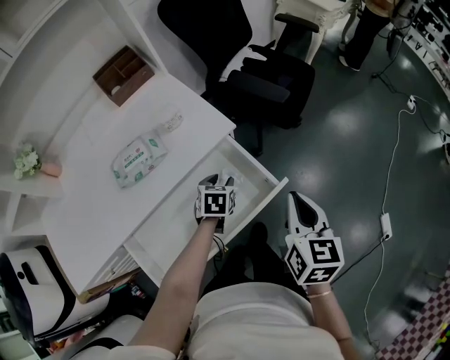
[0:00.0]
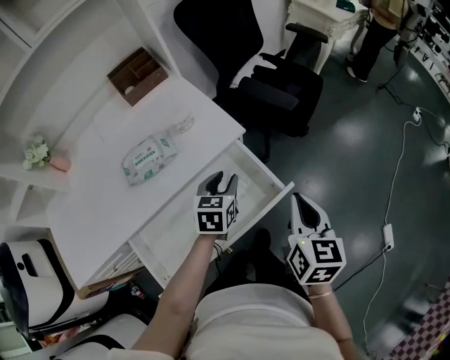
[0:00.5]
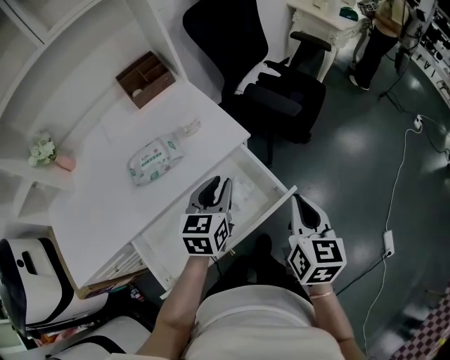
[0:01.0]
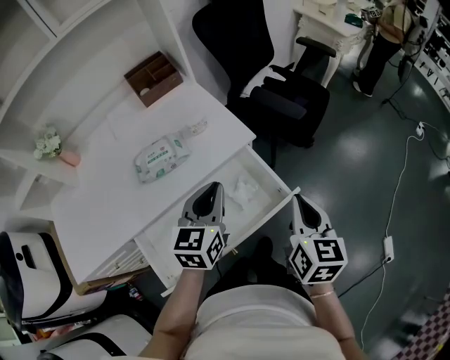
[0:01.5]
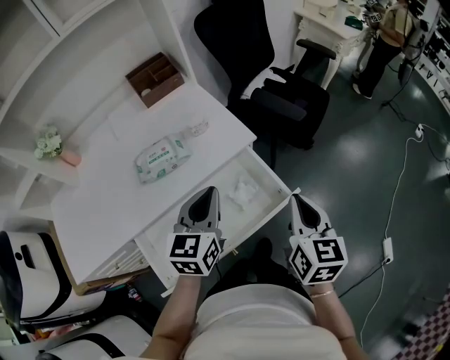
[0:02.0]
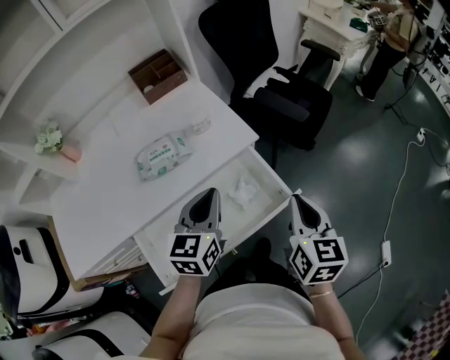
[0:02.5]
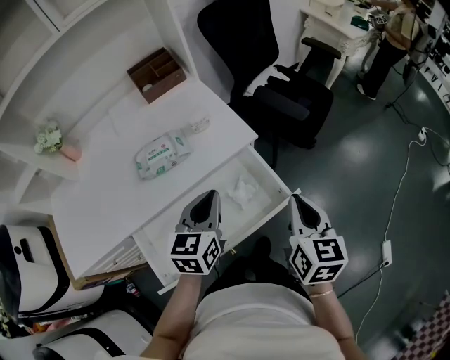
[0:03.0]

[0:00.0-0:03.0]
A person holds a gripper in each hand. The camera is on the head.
0:00.0 to 0:01.5: The left gripper travels upward by about 25 cm, angles its fingers upward, by about 40 degrees, and closes.
0:01.5 to 0:03.0: The grippers stay close to where they were, moving slightly.

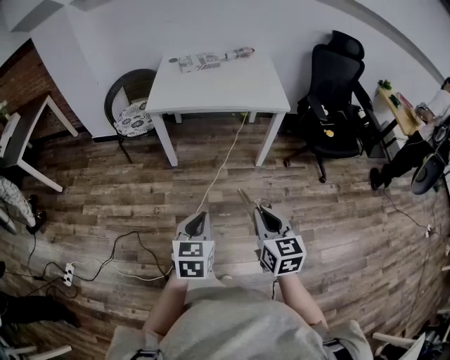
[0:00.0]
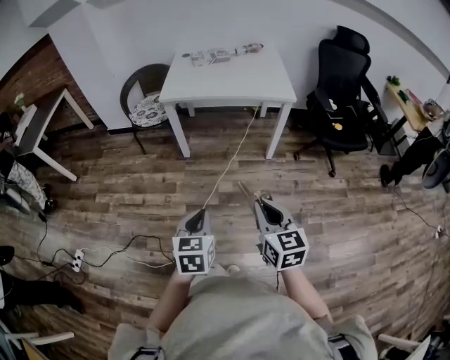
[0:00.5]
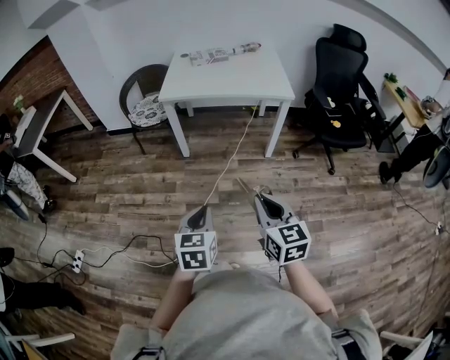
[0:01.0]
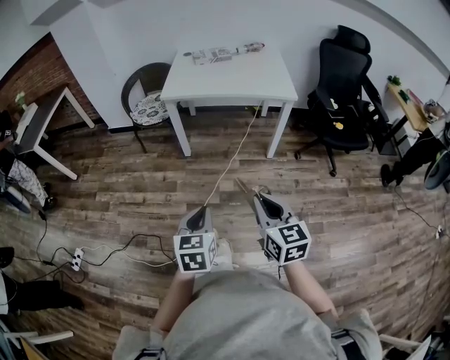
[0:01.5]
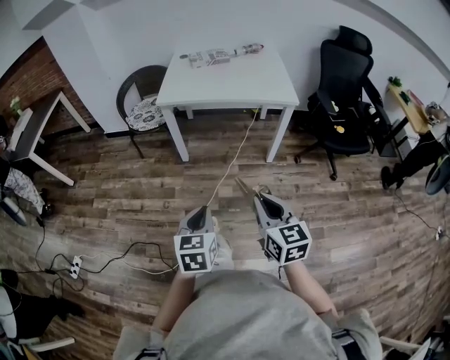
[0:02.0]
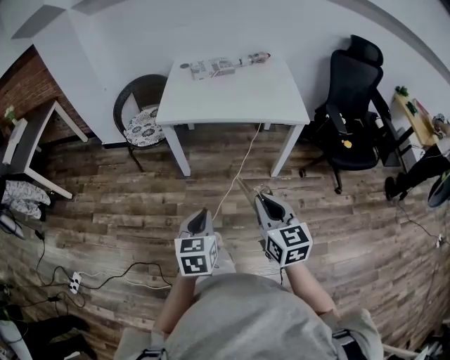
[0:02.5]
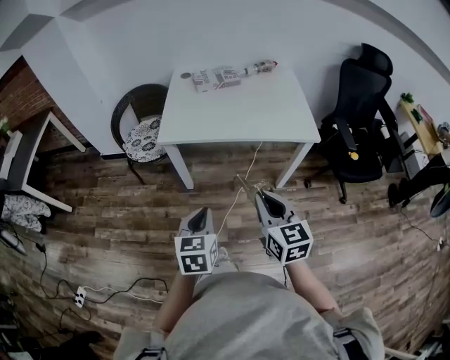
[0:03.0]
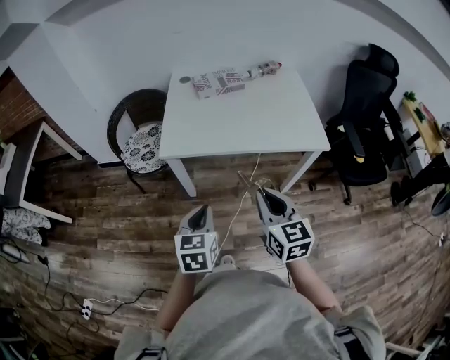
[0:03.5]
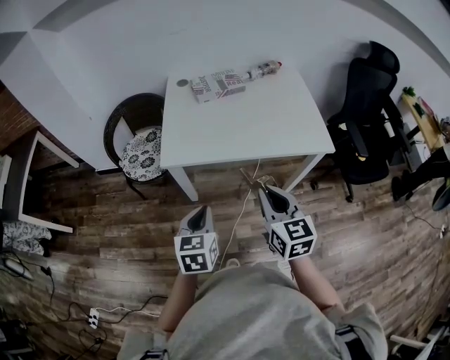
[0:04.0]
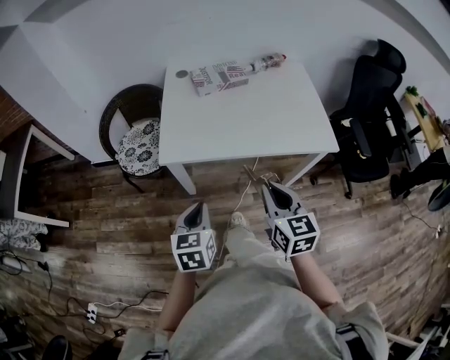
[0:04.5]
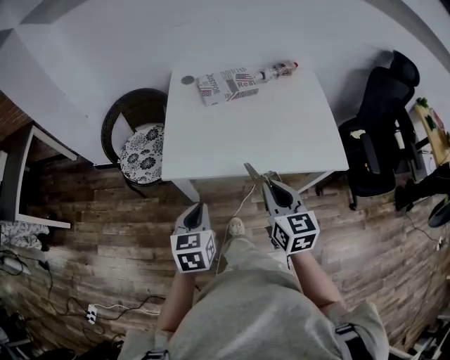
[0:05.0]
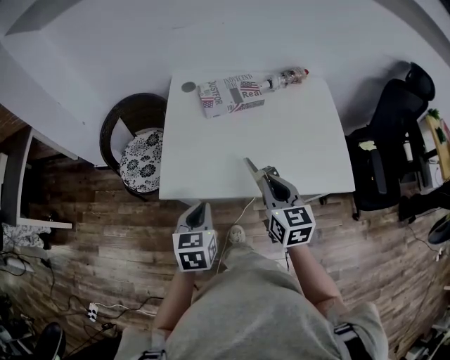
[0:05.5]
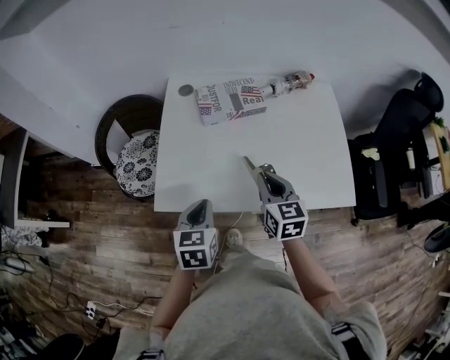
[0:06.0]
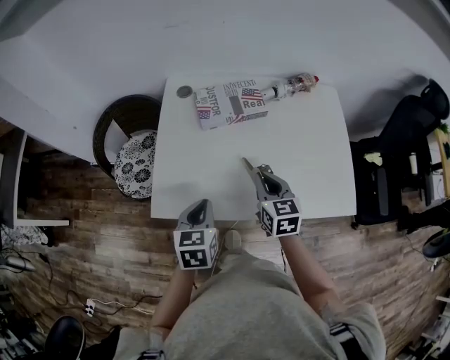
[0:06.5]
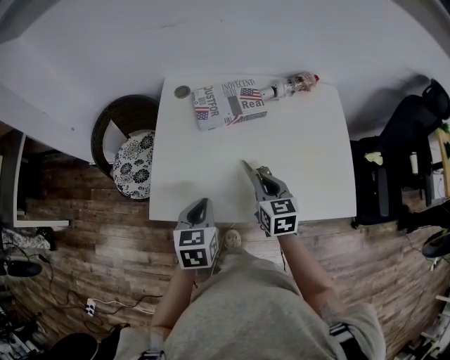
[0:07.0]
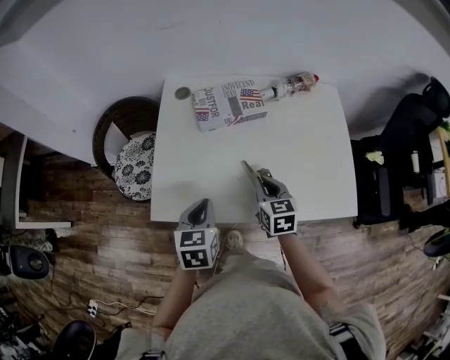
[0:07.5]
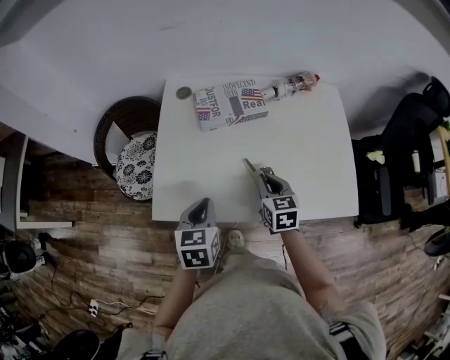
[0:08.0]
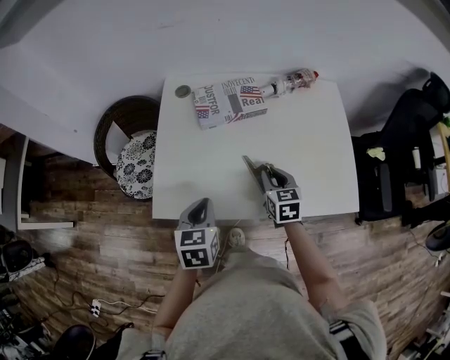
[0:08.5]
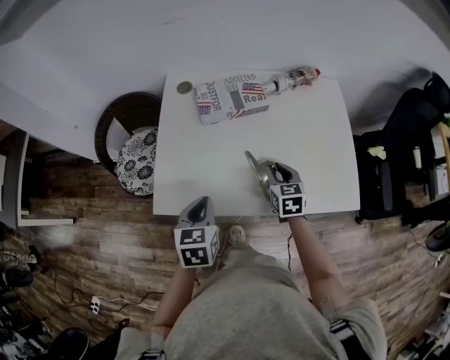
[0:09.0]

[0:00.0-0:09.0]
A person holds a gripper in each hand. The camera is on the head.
0:00.0 to 0:02.0: The right gripper moves roughly 10 cm backward and comes back. The left gripper travels backward and back again, about 10 cm each way.
0:02.0 to 0:04.5: The two grippers travel together, forward, approximately 50 cm.
0:04.5 to 0:07.0: The two grippers go about 30 cm forward.
0:07.0 to 0:09.0: The right gripper shifts by about 5 cm.

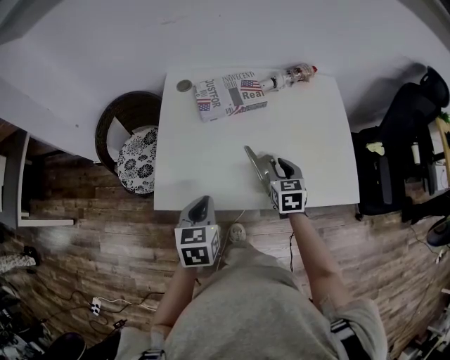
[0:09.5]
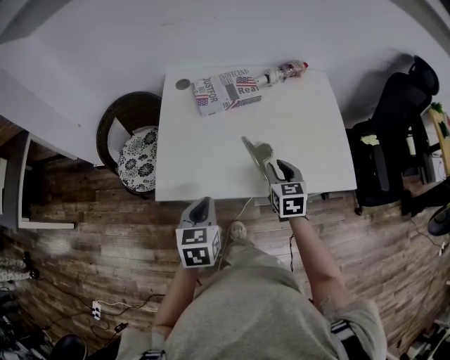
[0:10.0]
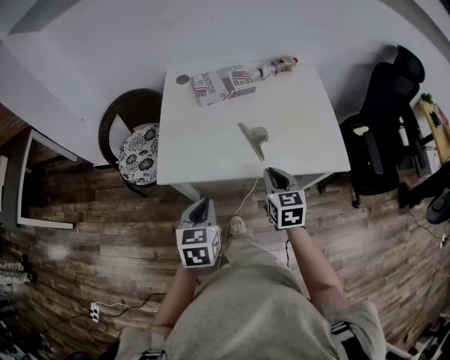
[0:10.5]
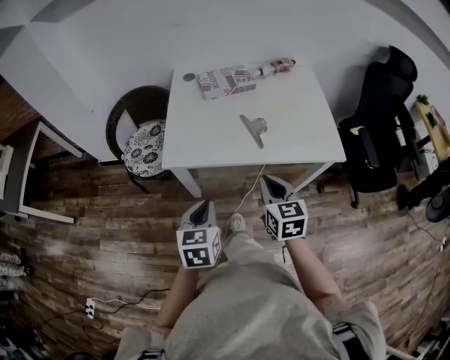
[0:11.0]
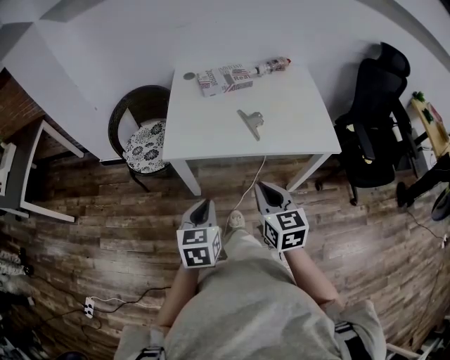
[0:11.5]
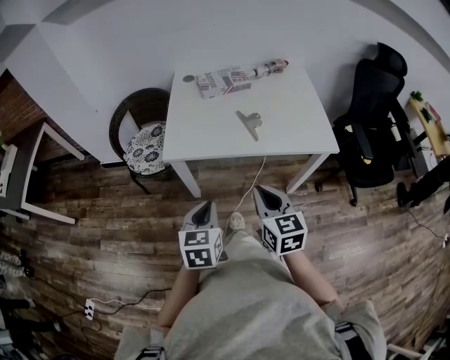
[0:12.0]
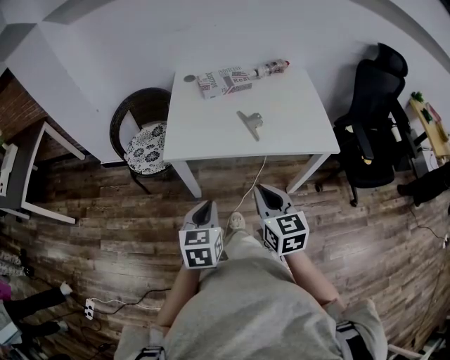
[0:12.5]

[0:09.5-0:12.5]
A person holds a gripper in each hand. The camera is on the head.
0:09.5 to 0:11.0: Both grippers travel together backward, roughly 25 cm. The right gripper closes its fingers.
0:11.0 to 0:12.5: The left gripper shifts some 5 cm backward. Meanwhile the right gripper moves backward, about 10 cm.

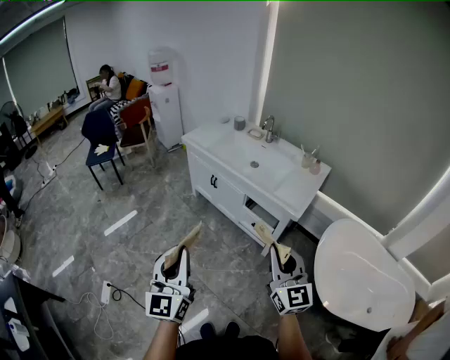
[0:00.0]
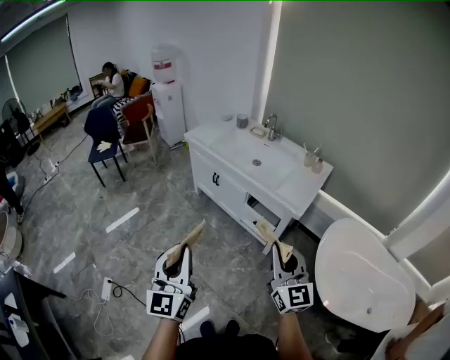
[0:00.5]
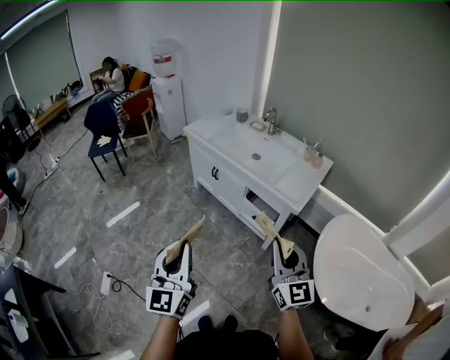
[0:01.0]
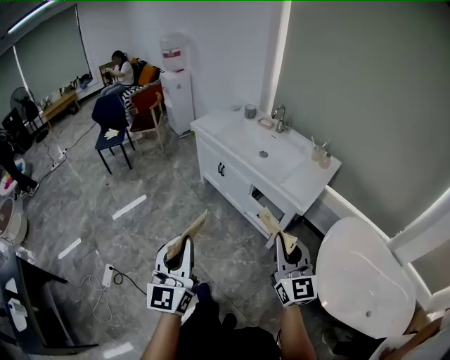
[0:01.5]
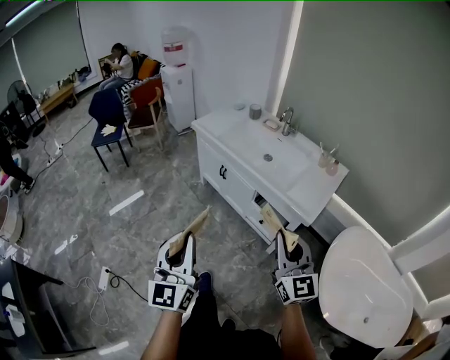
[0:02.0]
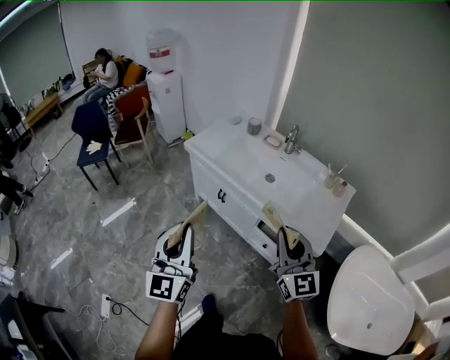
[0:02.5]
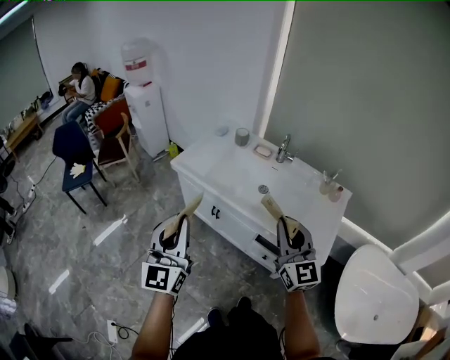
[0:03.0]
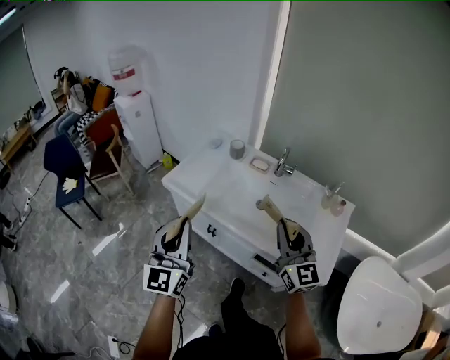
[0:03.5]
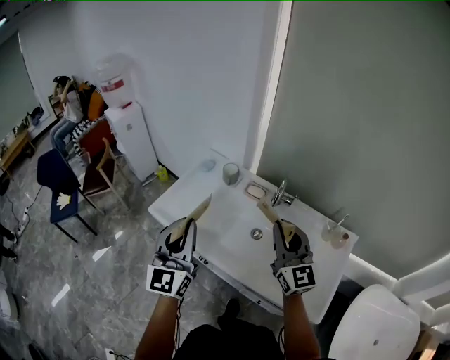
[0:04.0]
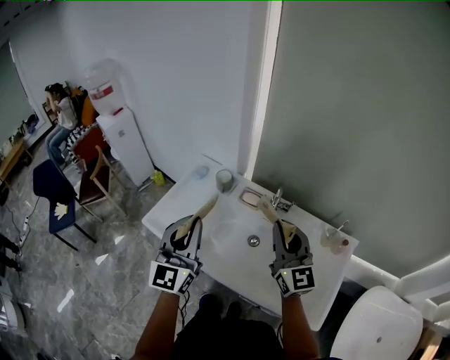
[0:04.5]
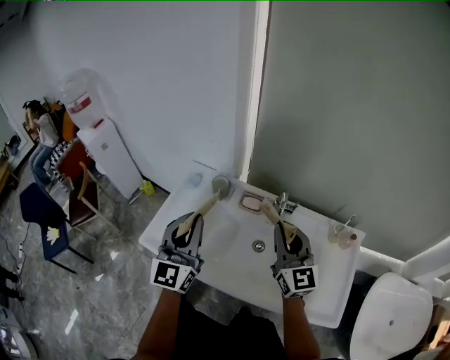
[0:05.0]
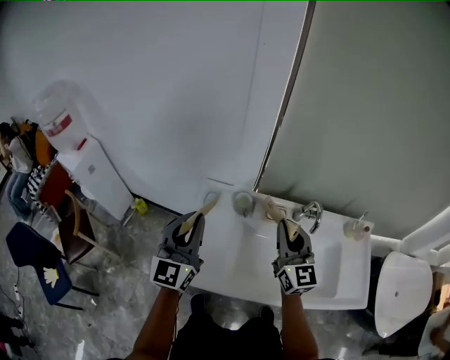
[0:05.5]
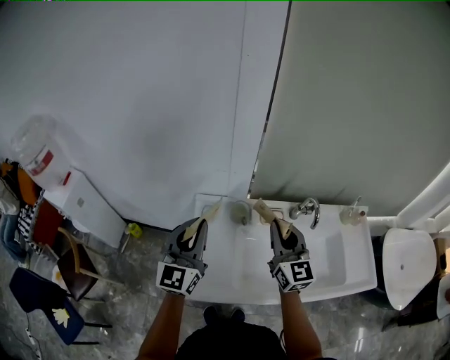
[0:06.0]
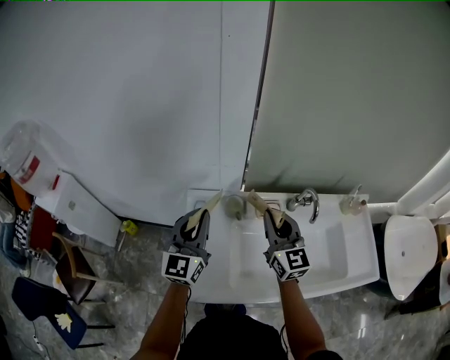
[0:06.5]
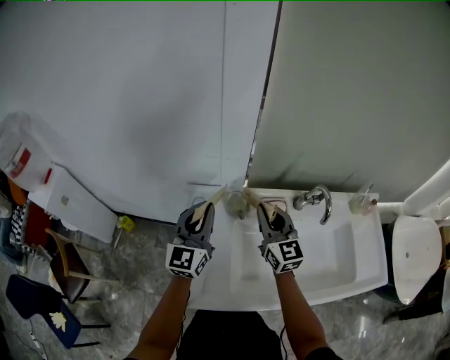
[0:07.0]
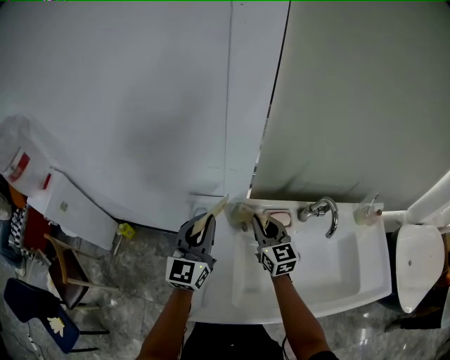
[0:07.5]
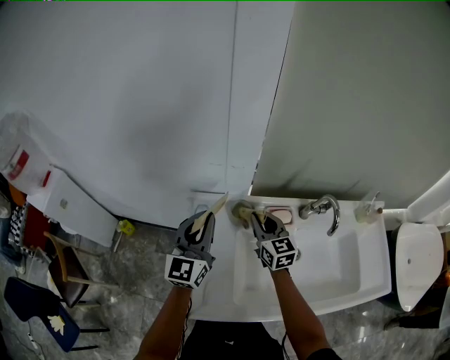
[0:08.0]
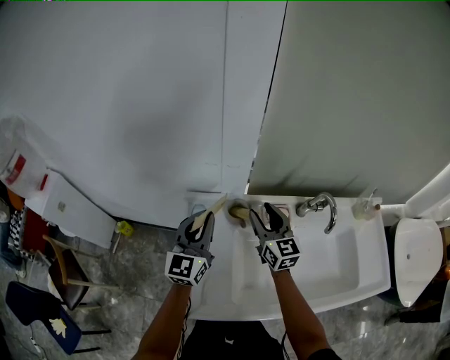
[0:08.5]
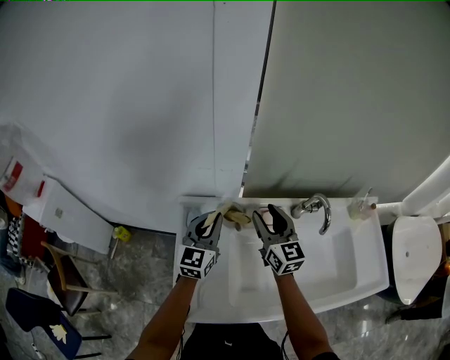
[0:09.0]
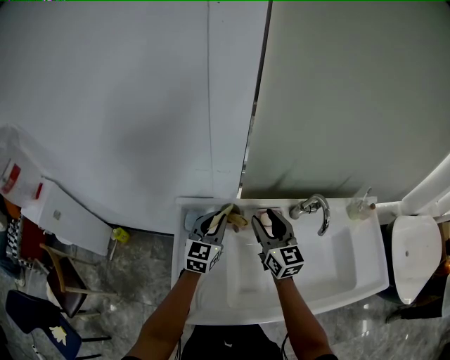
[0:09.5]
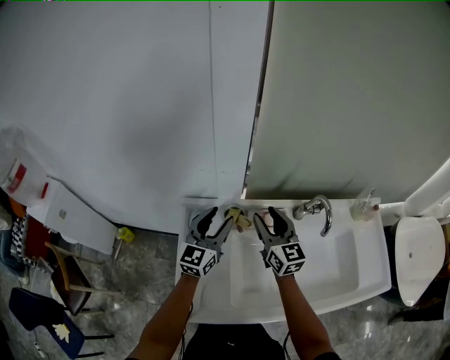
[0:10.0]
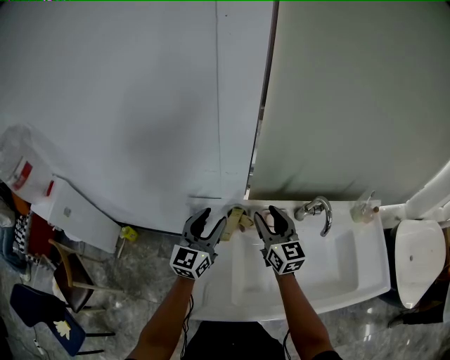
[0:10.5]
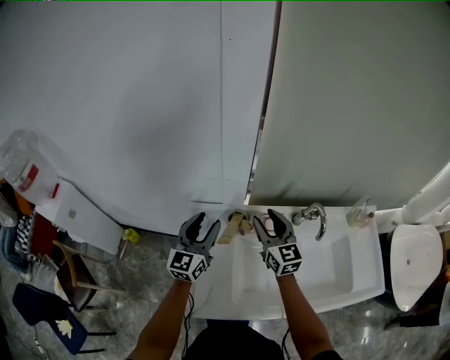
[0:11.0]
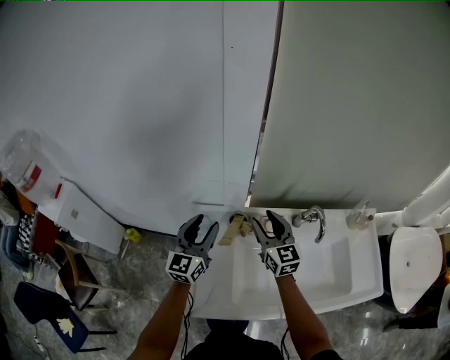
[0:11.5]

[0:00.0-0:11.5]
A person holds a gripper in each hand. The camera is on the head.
0:00.0 to 0:02.0: The two grippers go approximately 10 cm forward.
0:02.0 to 0:04.0: Both grippers are carried forward, approximately 70 cm.
0:04.0 to 0:06.0: The right gripper ends up about 30 cm from where it was, and changes its angle by roughly 30 degrees. The left gripper ends up some 40 cm from where it was, and turns by roughly 30 degrees.
0:06.0 to 0:07.5: The two grippers go some 20 cm downward and forward.
0:07.5 to 0:09.5: The left gripper goes some 15 cm downward, to the right and forward. Meanwhile the right gripper ends up about 5 cm from where it was, and opens up.
0:09.5 to 0:11.5: The right gripper moves upward, approximately 5 cm, while the left gripper heads upward and to the left, covering approximately 15 cm, and opens.
